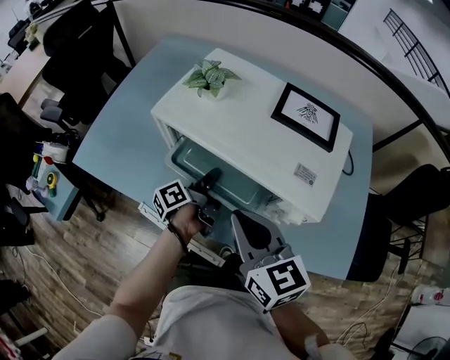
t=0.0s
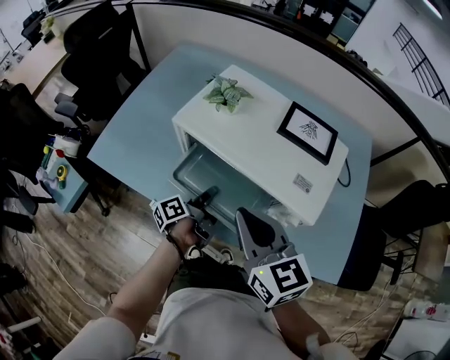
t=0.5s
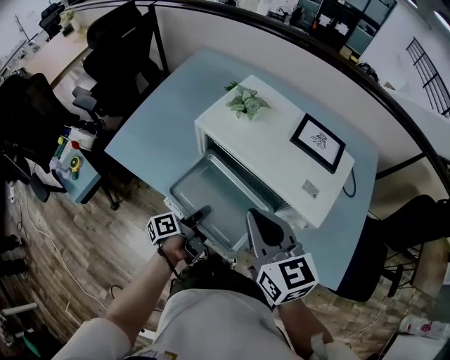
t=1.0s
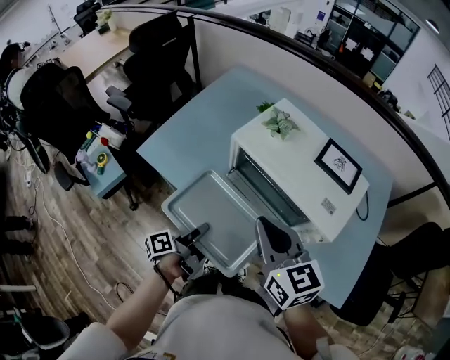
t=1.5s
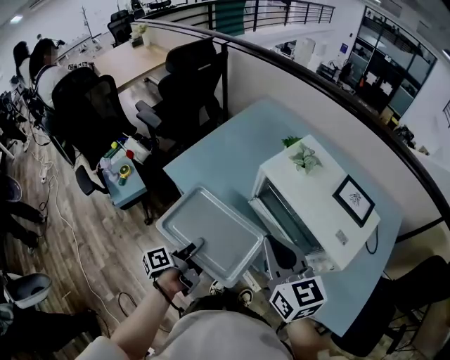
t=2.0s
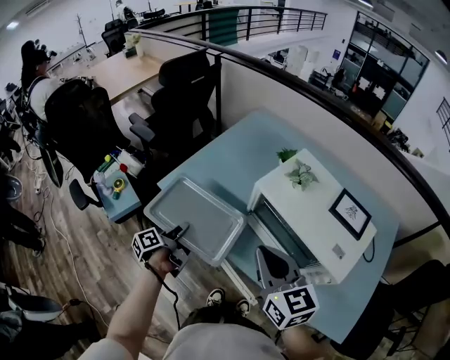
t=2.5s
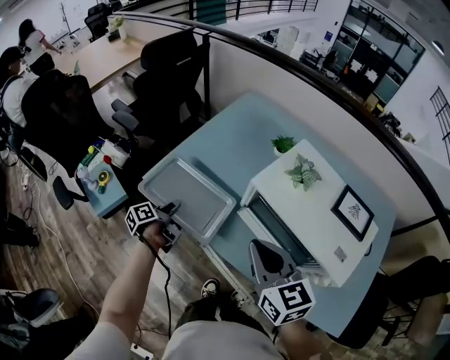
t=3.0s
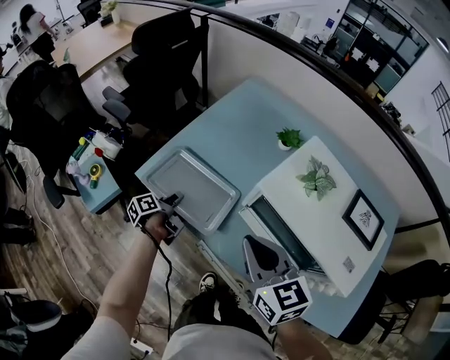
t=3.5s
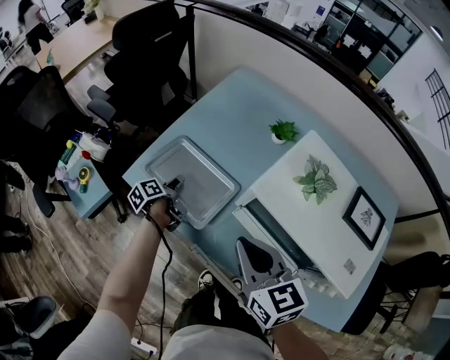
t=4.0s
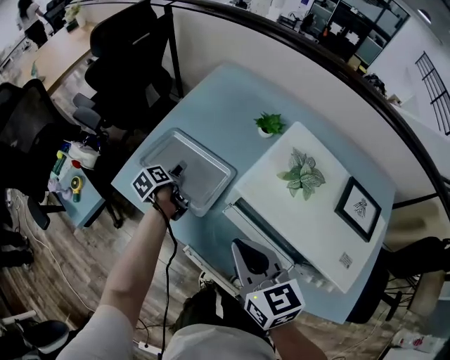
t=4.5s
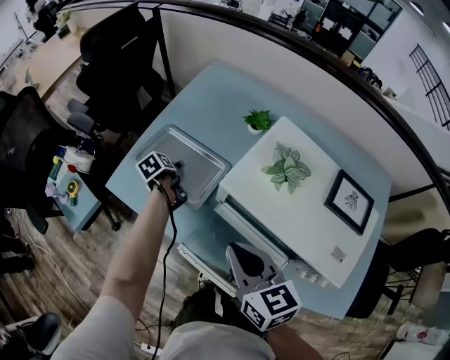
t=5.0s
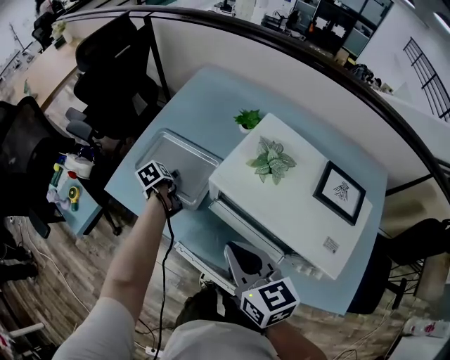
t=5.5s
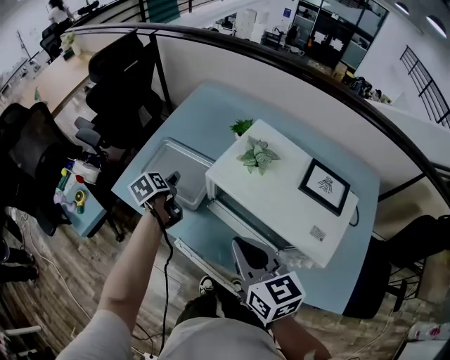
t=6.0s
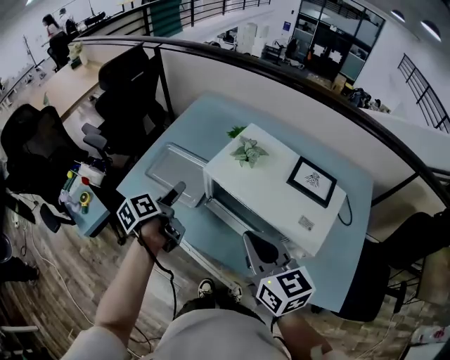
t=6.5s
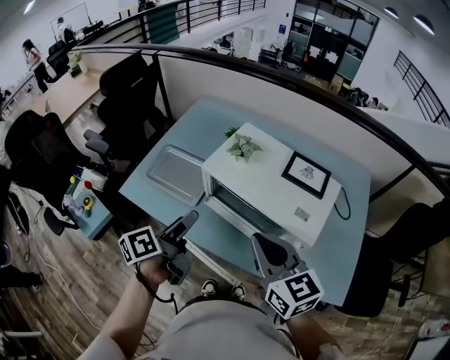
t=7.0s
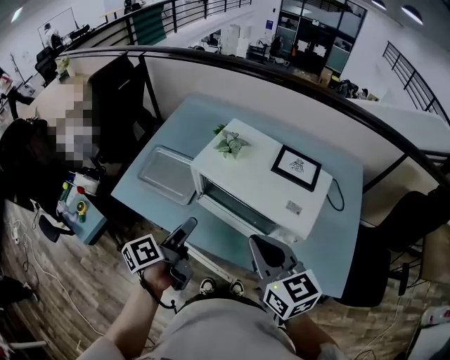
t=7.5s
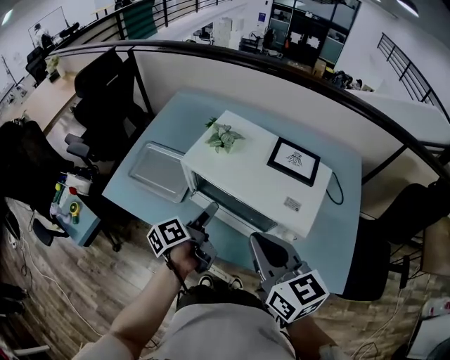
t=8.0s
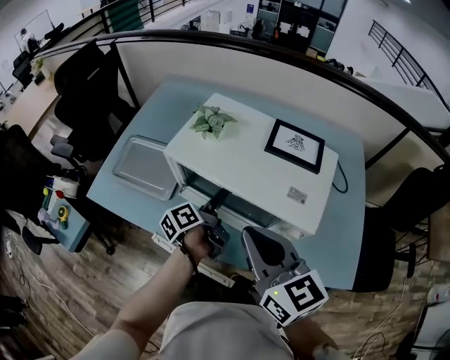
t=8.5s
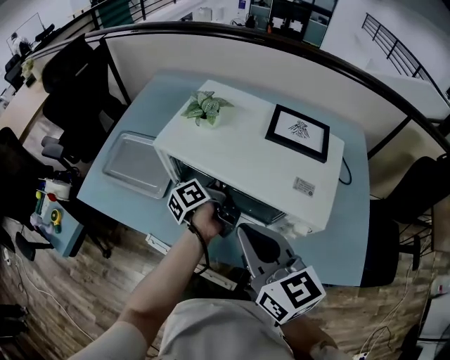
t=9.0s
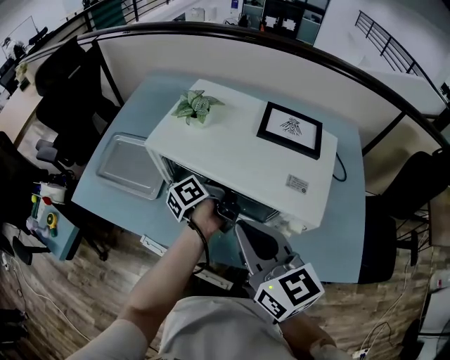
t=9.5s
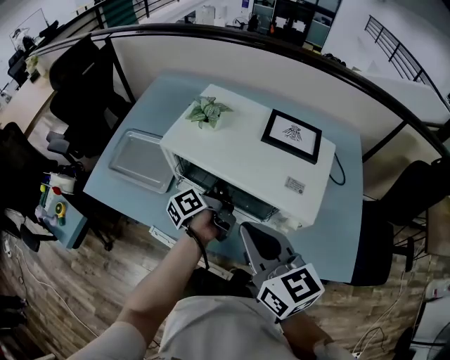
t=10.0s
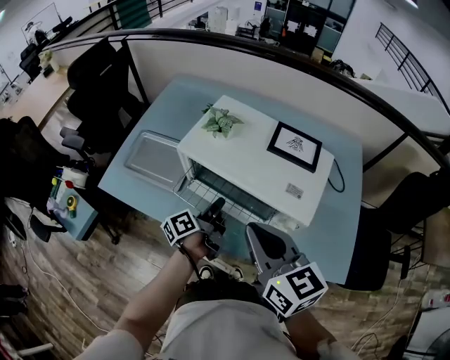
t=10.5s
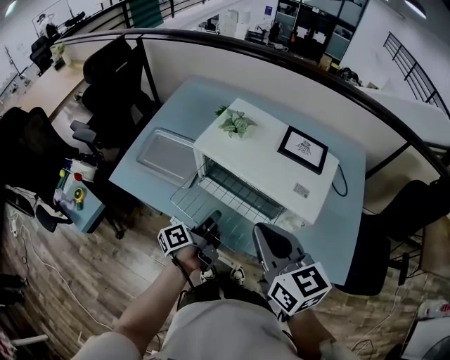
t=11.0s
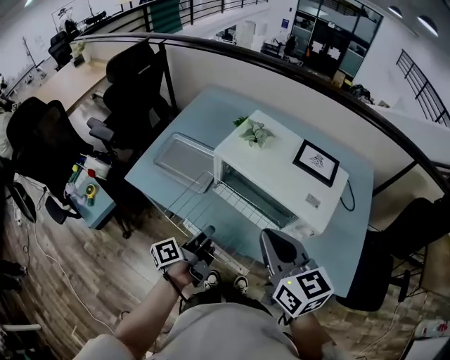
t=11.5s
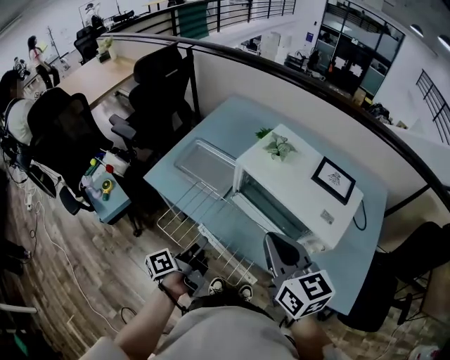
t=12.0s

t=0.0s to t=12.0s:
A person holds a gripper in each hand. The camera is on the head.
t=0.0s to t=2.0s: The right gripper travels upward and to the left by some 15 cm, while the left gripper is displaced to the left, backward and upward by roughly 35 cm.
t=2.0s to t=4.0s: The left gripper moves forward and downward, approximately 35 cm, swivels approximately 20 degrees, and opens up. Meanwhile the right gripper moves forward and downward, some 15 cm.
t=4.0s to t=6.0s: The left gripper goes about 10 cm upward and to the right, swivels about 30 degrees, and opens. The right gripper heads backward and to the right, covering roughly 10 cm.
t=6.0s to t=8.0s: The right gripper shifts roughly 15 cm to the right, backward and upward, while the left gripper is displaced to the right, backward and upward by roughly 30 cm, and angles its fingers upward, by approximately 30 degrees.
t=8.0s to t=10.0s: The left gripper travels to the right, forward and downward by about 15 cm, and closes up. The right gripper heads downward, covering approximately 5 cm.
t=10.0s to t=12.0s: The right gripper is displaced upward and to the left by roughly 10 cm; the left gripper goes some 30 cm to the left and backward.

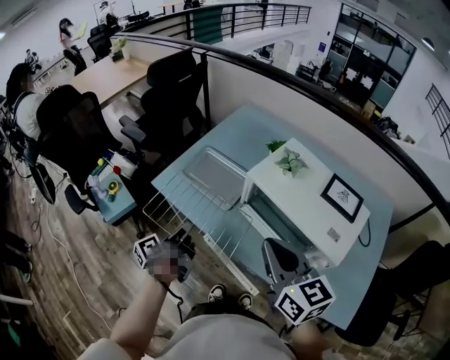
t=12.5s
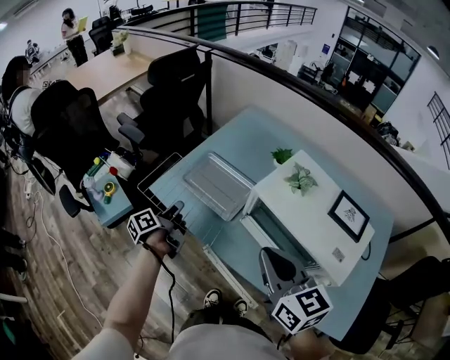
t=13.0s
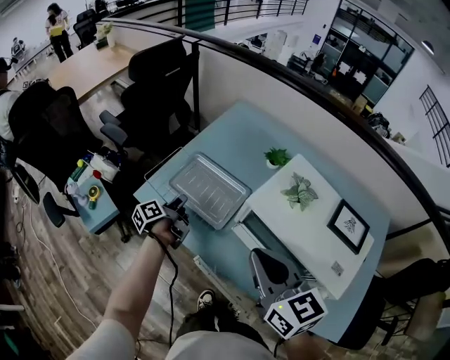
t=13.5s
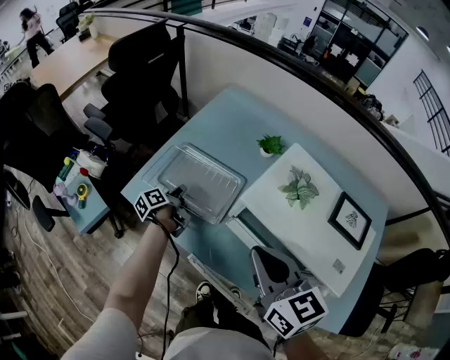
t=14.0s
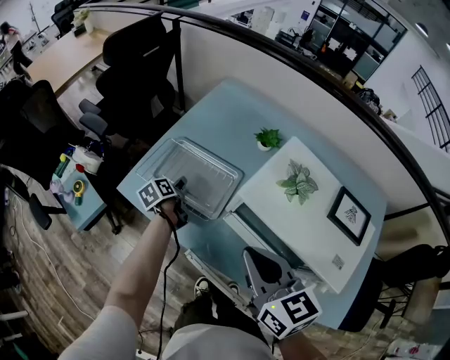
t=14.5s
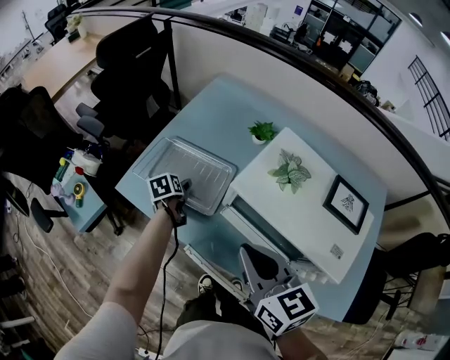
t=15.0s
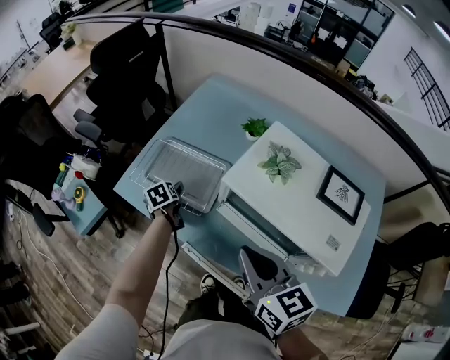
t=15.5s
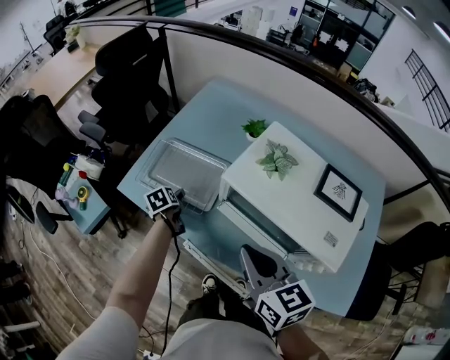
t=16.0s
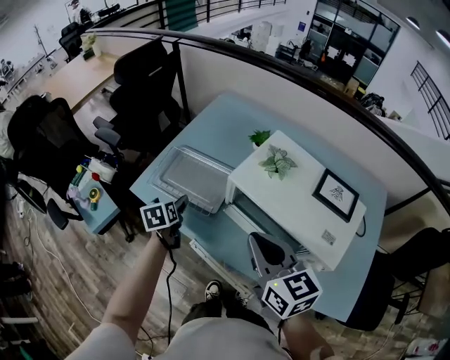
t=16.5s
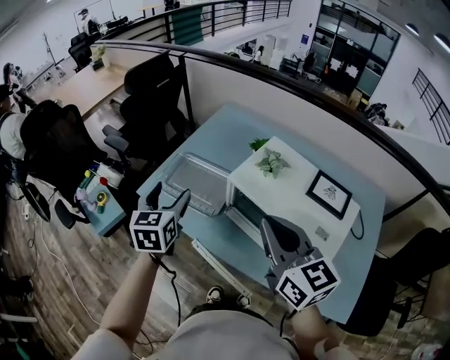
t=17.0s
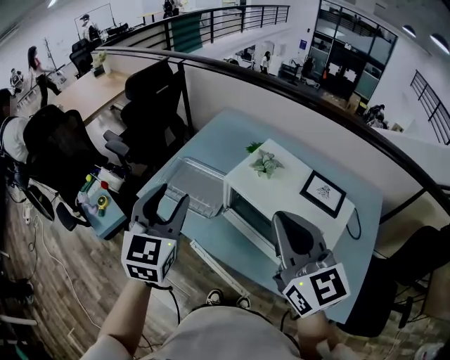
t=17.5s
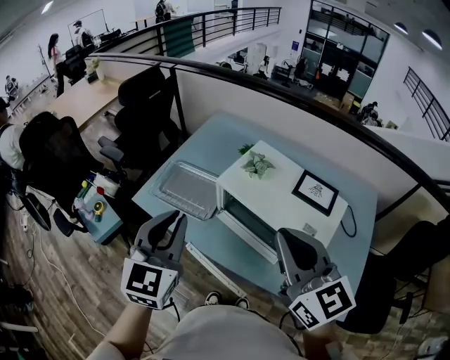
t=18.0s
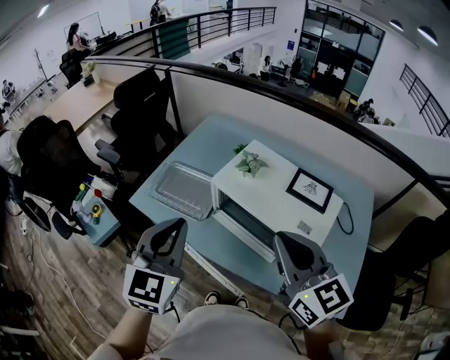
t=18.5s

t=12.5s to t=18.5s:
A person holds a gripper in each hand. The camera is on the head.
t=12.5s to t=14.5s: The left gripper moves forward and downward, about 30 cm, tilts its fingers about 30 degrees downward, and opens its fingers, while the right gripper moves forward and downward, approximately 15 cm.
t=14.5s to t=16.5s: The left gripper heads backward and upward, covering approximately 15 cm, turns by some 30 degrees, and opens its fingers; the right gripper shifts approximately 5 cm backward.
t=16.5s to t=18.5s: The left gripper moves upward and backward, approximately 35 cm, tips its fingers upward by roughly 30 degrees, and closes up. The right gripper moves upward, backward and to the right, some 15 cm.

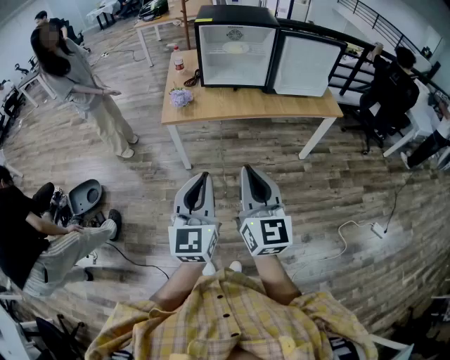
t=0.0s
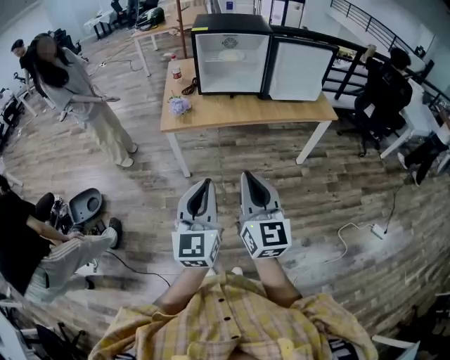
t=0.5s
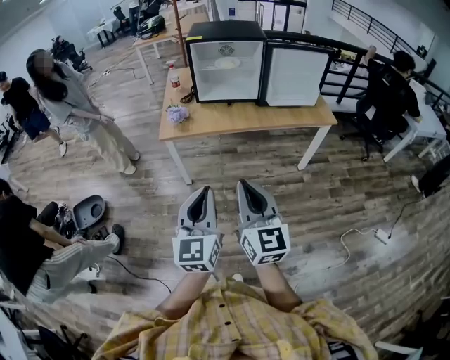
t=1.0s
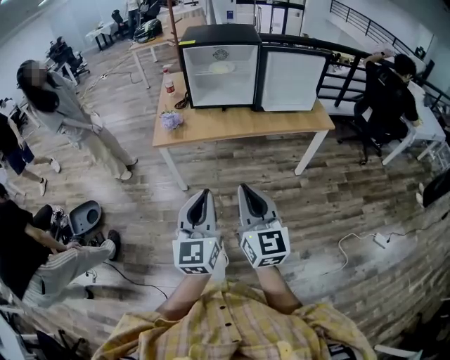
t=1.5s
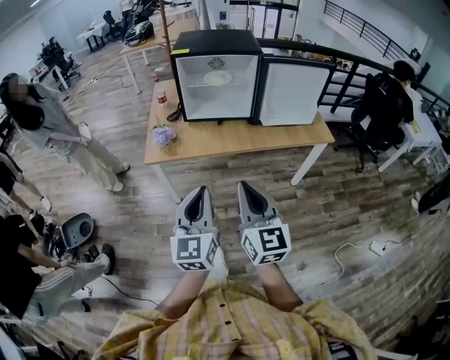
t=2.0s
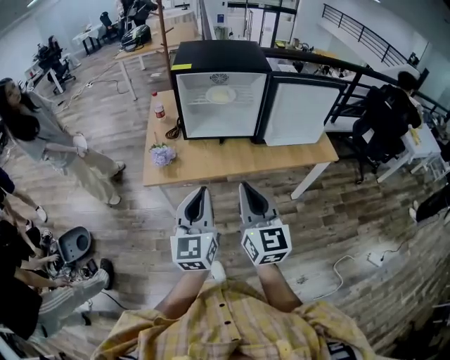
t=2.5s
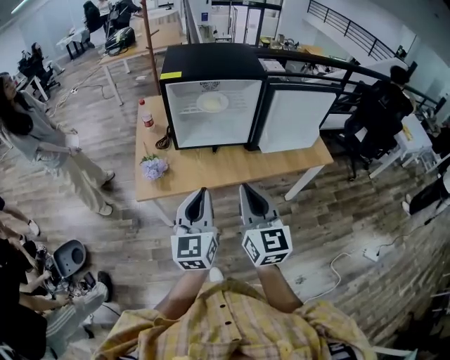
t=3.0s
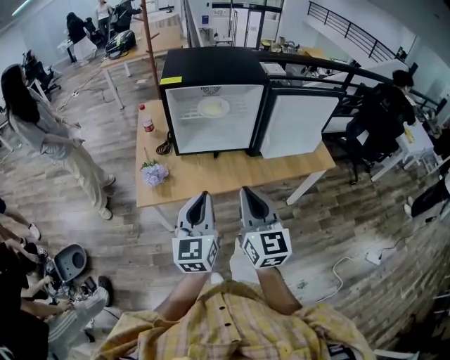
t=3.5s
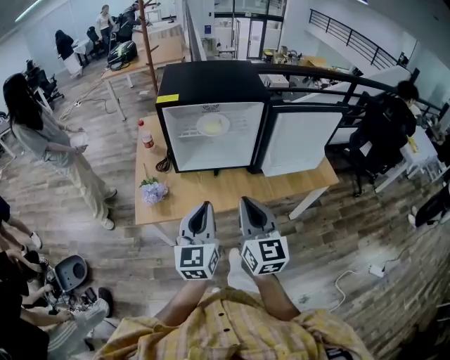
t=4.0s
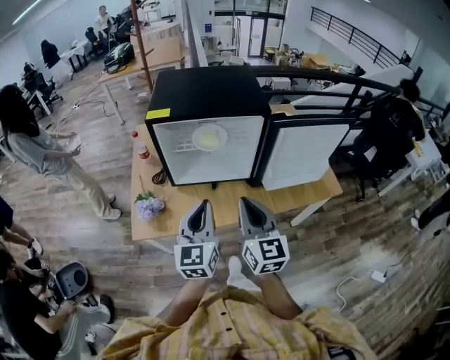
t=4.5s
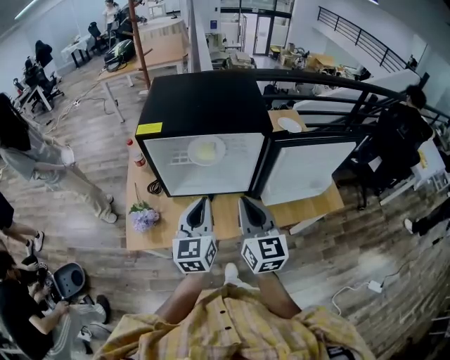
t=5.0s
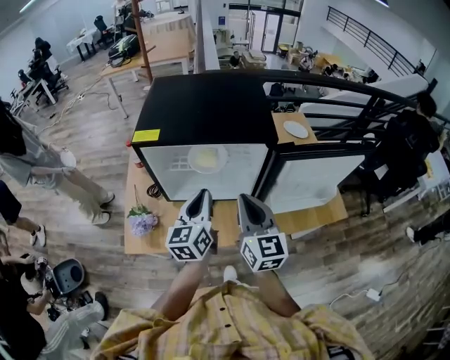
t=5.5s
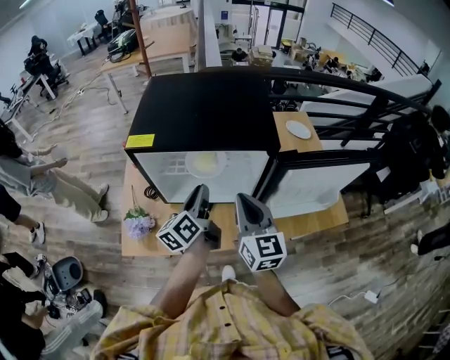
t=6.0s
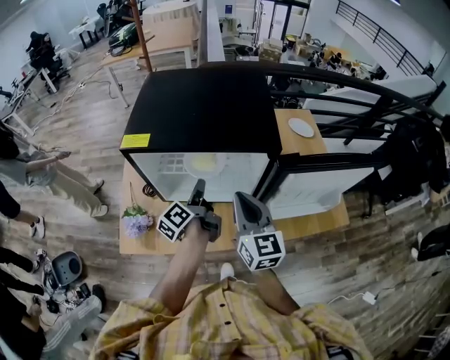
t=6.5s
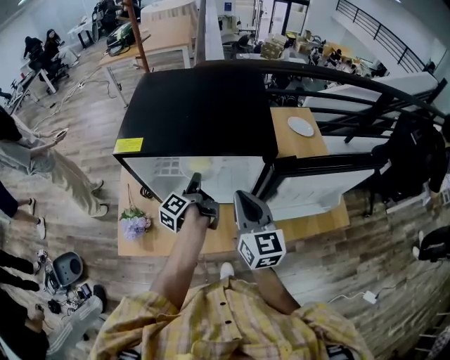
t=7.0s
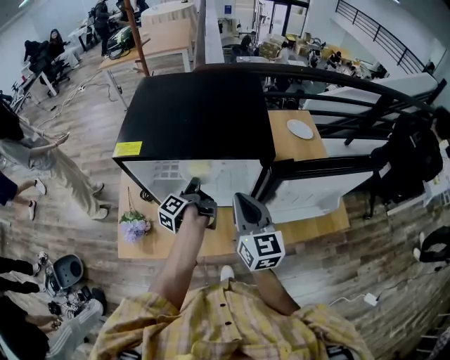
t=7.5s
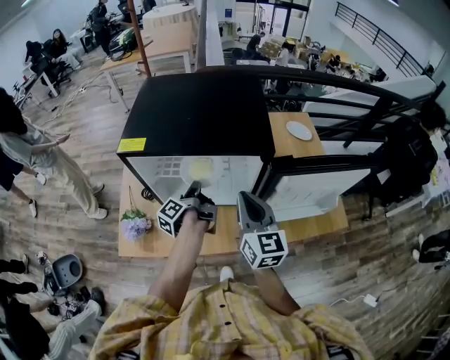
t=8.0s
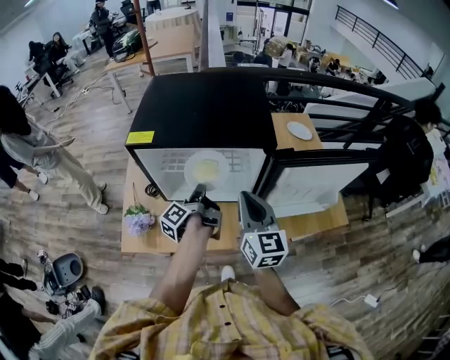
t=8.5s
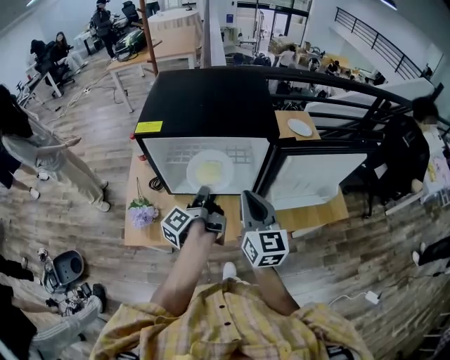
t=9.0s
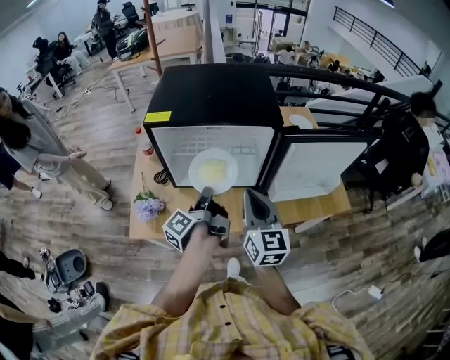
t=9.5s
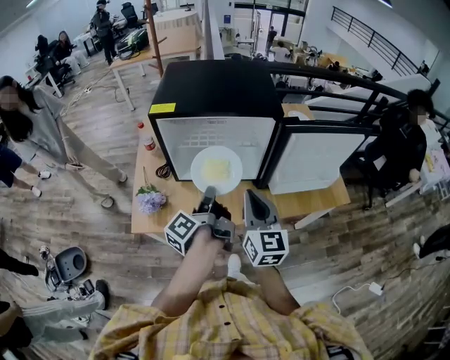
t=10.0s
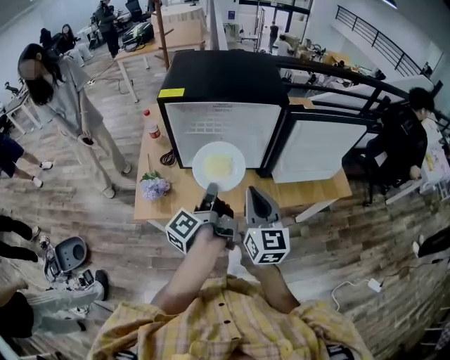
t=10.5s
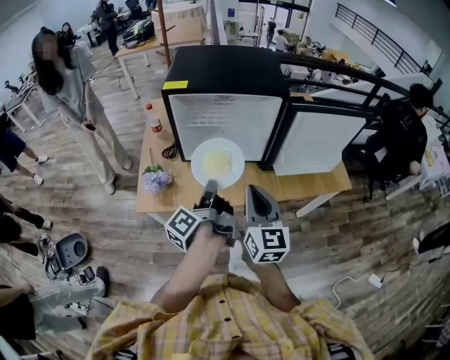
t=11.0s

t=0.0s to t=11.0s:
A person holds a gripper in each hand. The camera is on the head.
t=0.0s to t=2.0s: The two grippers go some 15 cm forward and to the right.
t=2.0s to t=3.5s: Both grippers move forward, some 20 cm.
t=3.5s to t=5.5s: Both grippers travel together forward, about 30 cm.
t=5.5s to t=7.5s: The right gripper shifts some 5 cm forward; the left gripper shifts roughly 20 cm forward and downward, twists some 70 degrees counterclockwise, seen from behind, and opens, then closes again.
t=7.5s to t=9.0s: The left gripper is displaced backward and upward by some 15 cm; the right gripper is displaced backward by roughly 5 cm.
t=9.0s to t=11.0s: The right gripper heads backward and to the left, covering about 15 cm. Meanwhile the left gripper heads backward, covering about 15 cm.
